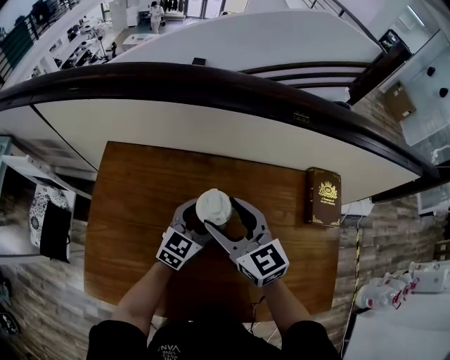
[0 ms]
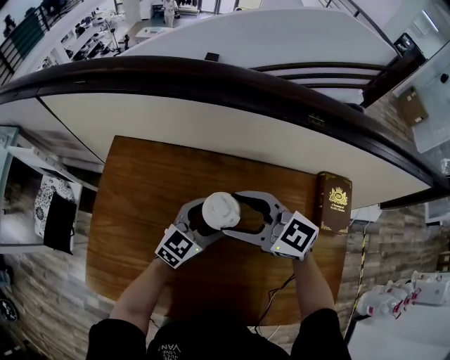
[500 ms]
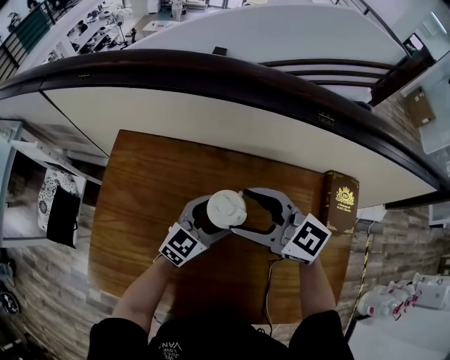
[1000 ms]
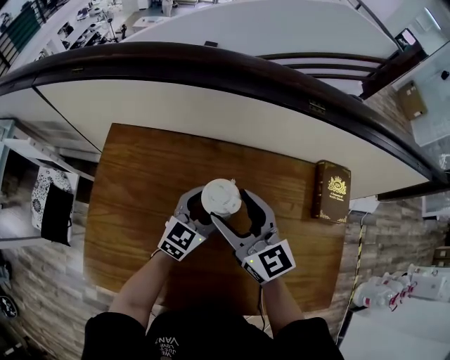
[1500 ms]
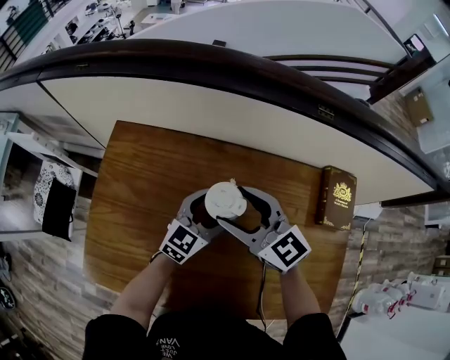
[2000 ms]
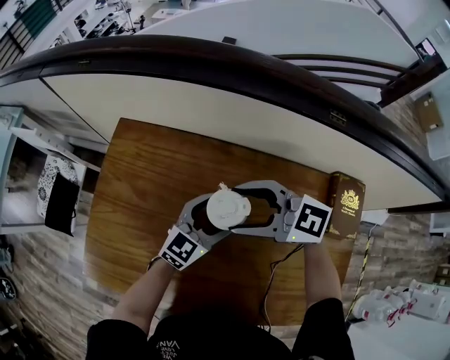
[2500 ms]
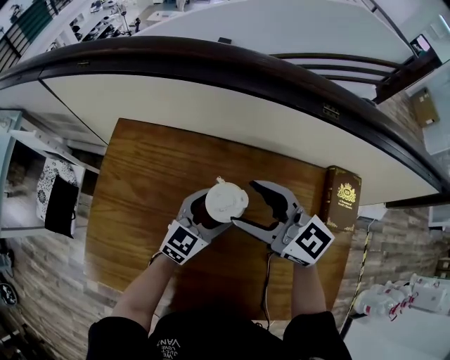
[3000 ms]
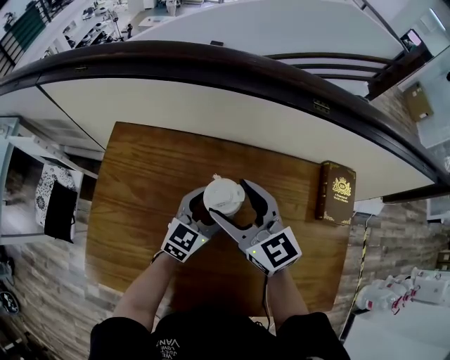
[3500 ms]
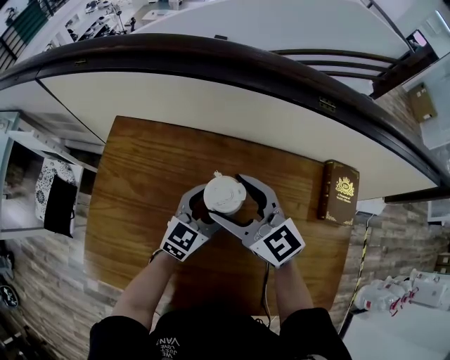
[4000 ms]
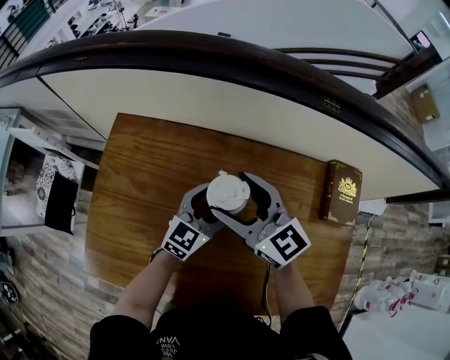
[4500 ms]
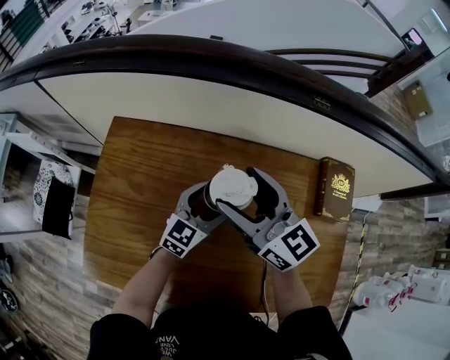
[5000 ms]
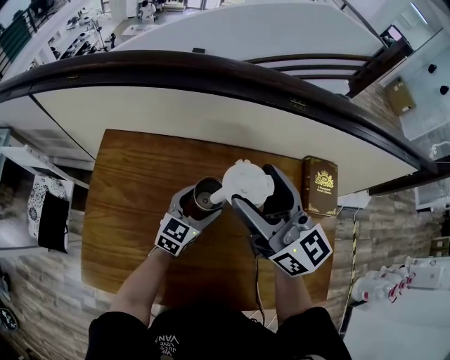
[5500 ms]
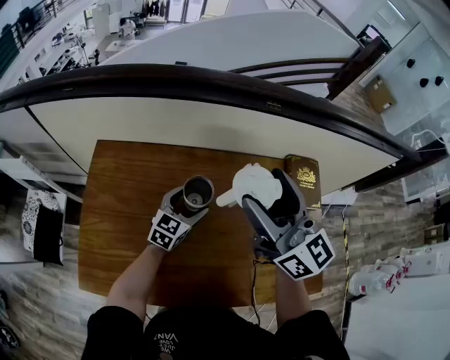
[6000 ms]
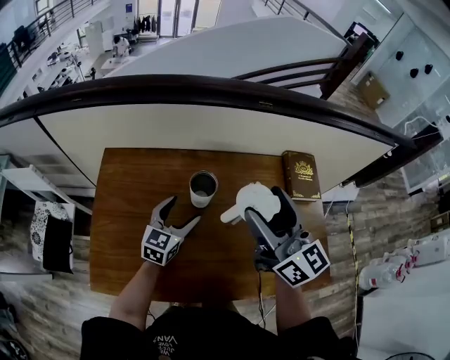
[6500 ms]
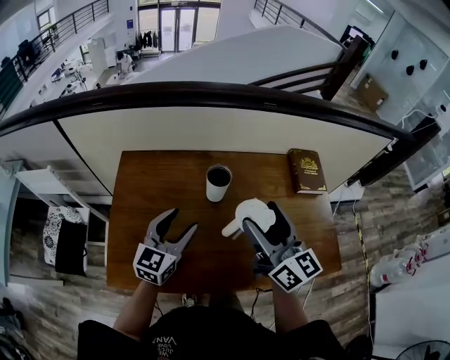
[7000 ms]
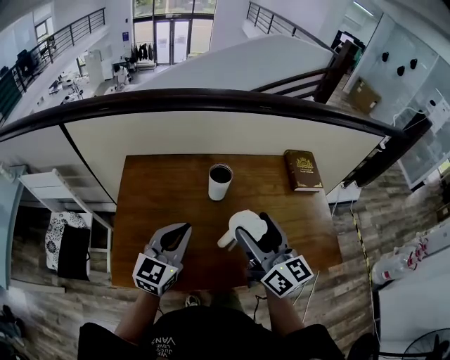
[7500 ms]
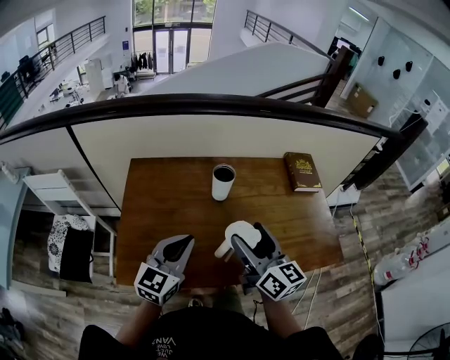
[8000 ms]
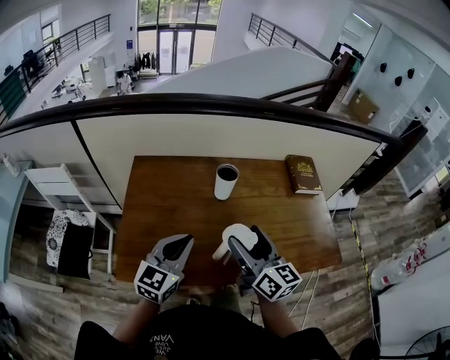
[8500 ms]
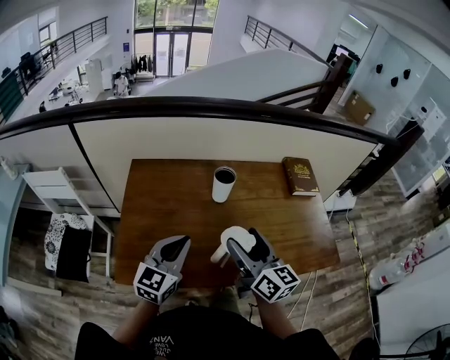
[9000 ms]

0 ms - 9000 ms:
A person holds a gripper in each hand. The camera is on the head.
4500 ms - 7000 ms: The left gripper heads backward, upward and to the left, covering approximately 20 cm. The right gripper shifts some 20 cm backward, upward and to the right, and turns by roughly 40 degrees.
7000 ms - 9000 ms: The right gripper shifts some 10 cm backward and downward; the left gripper travels backward by approximately 10 cm, and closes its fingers.

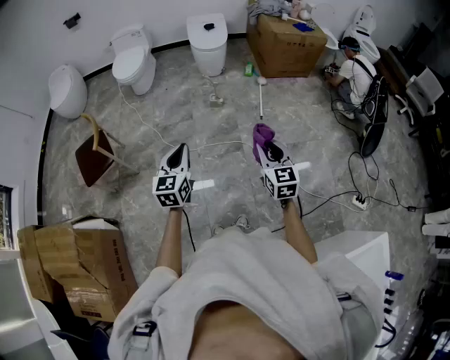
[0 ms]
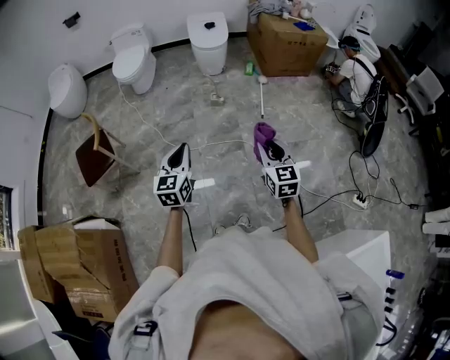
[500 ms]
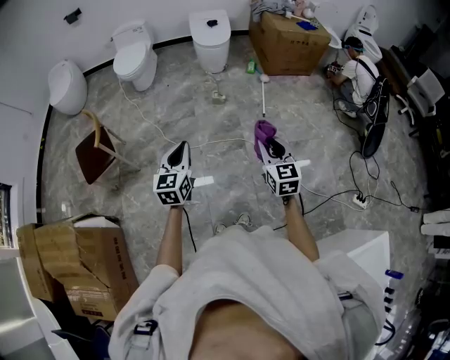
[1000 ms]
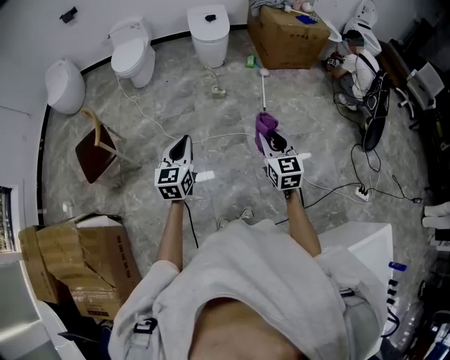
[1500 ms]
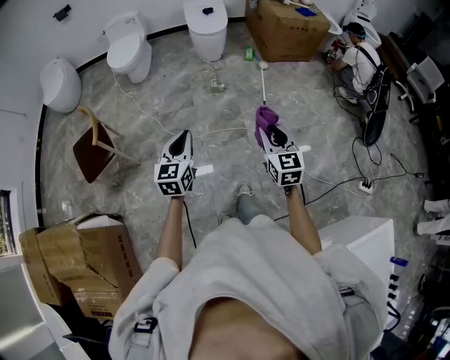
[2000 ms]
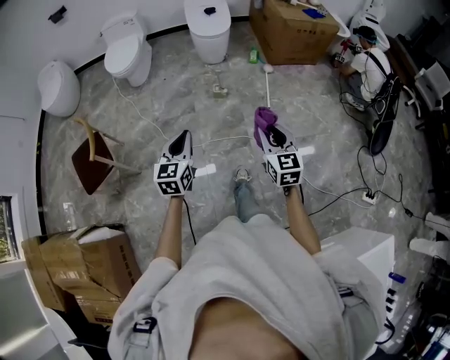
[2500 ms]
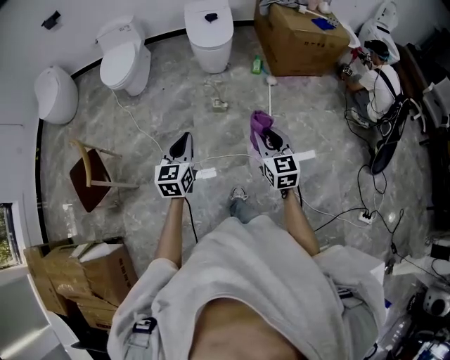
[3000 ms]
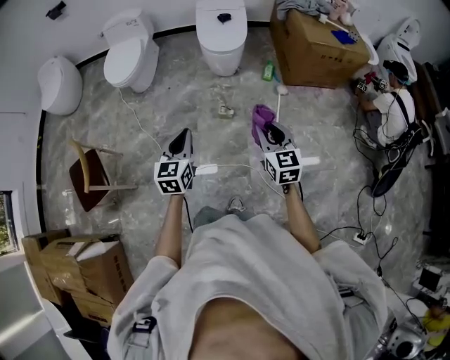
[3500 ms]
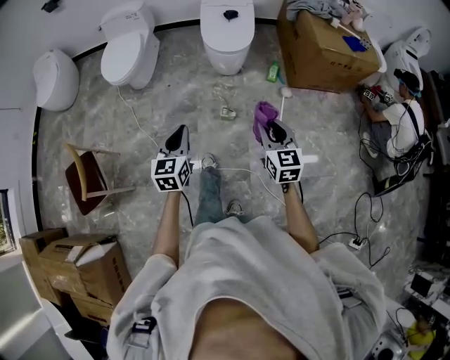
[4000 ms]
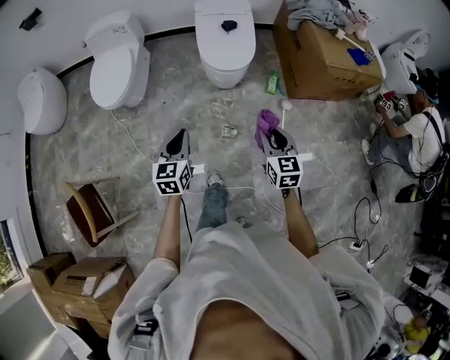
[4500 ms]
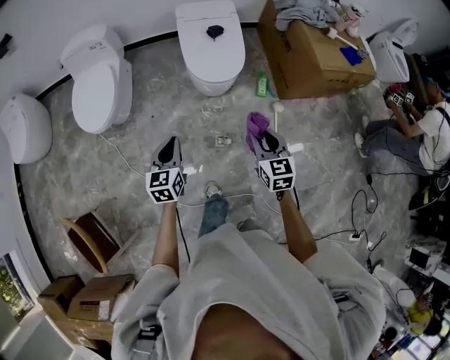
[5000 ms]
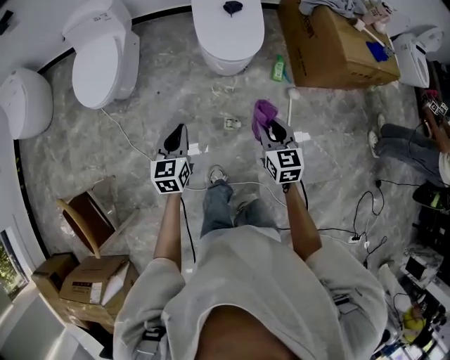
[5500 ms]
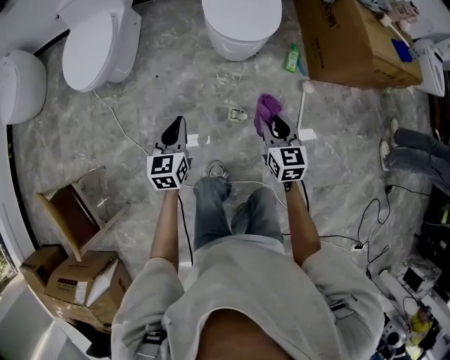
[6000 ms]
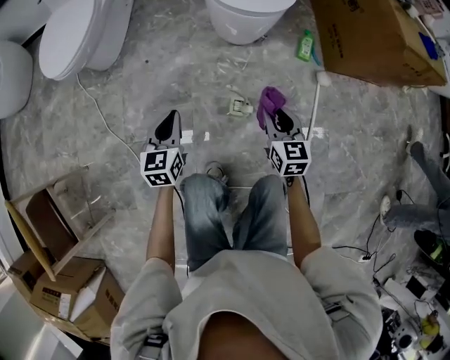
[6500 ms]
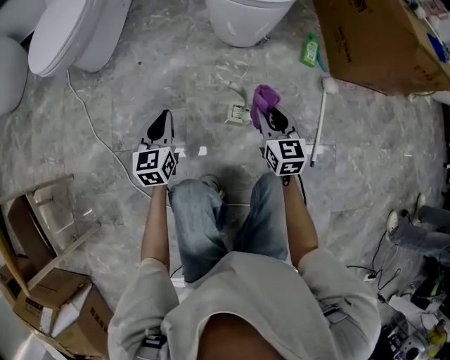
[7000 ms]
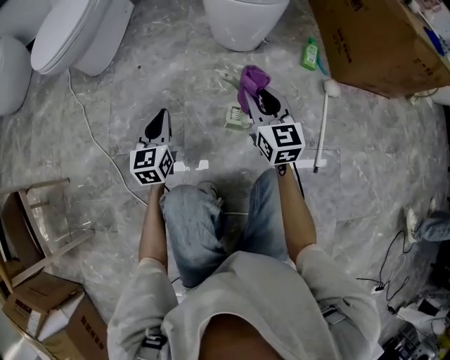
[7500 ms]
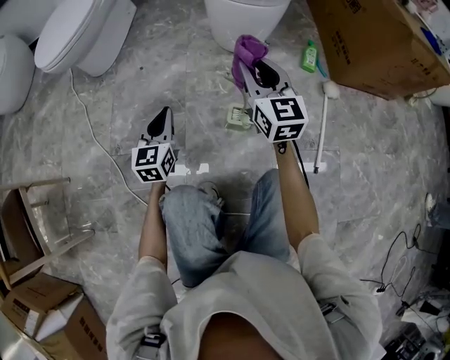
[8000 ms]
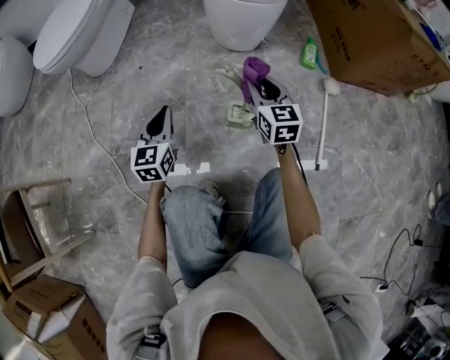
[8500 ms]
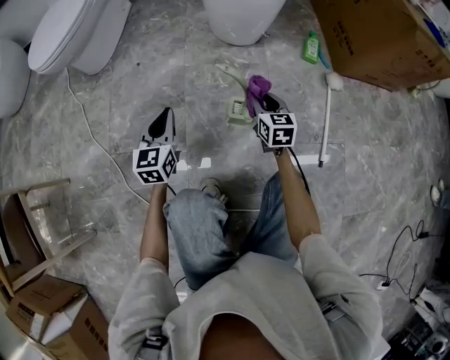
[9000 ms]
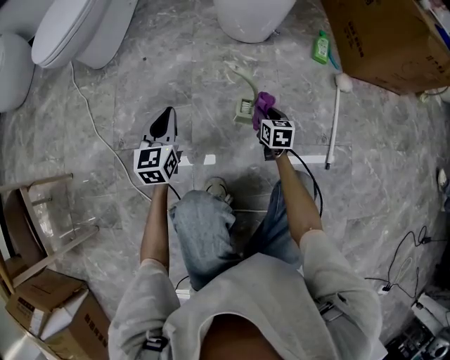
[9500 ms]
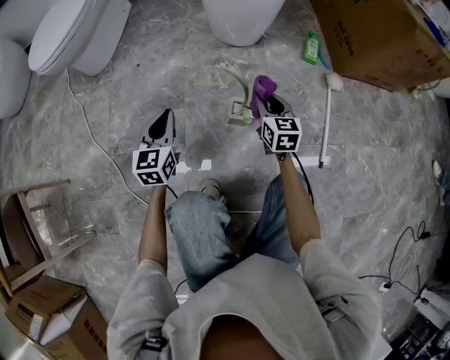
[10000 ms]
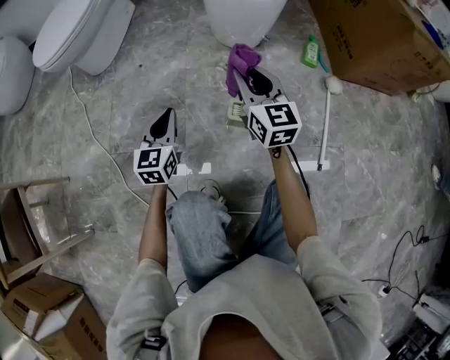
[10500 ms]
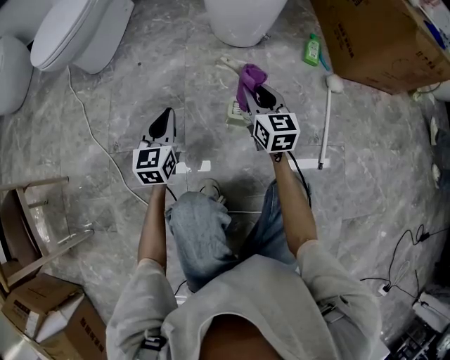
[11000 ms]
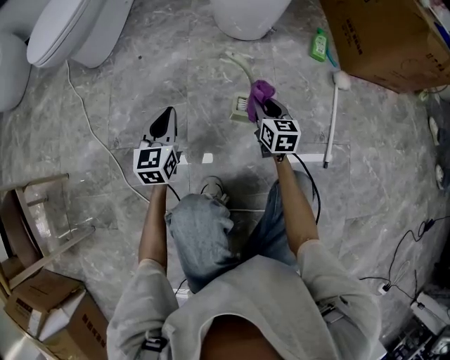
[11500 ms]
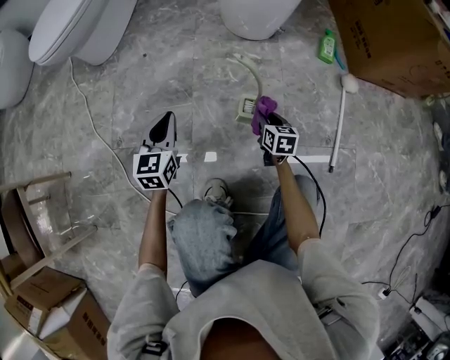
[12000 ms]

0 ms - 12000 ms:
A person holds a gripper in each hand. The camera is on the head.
0 ms - 2000 ms: The left gripper changes place by roughly 5 cm, while the right gripper shifts by some 5 cm.
2000 ms - 4000 ms: The pair of grippers is taken forward, some 50 cm.
4000 ms - 6000 ms: The right gripper moves downward and forward, approximately 35 cm; the left gripper is displaced forward and downward by roughly 35 cm.
6000 ms - 8000 ms: The right gripper shifts approximately 20 cm downward and forward, and swivels some 20 degrees. Meanwhile the left gripper is displaced downward by approximately 30 cm.
8000 ms - 10000 ms: The right gripper shifts roughly 20 cm downward, and turns by approximately 20 degrees.
10000 ms - 12000 ms: The right gripper is displaced downward by some 15 cm.

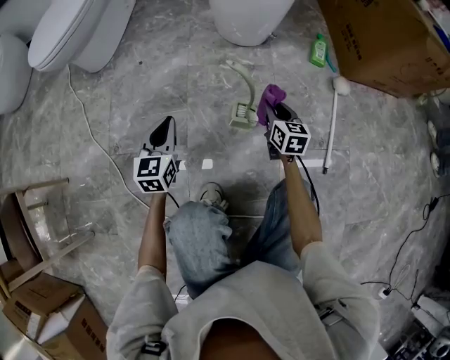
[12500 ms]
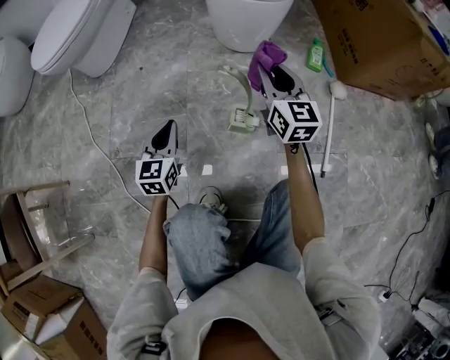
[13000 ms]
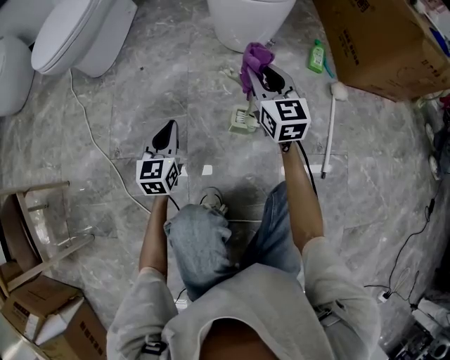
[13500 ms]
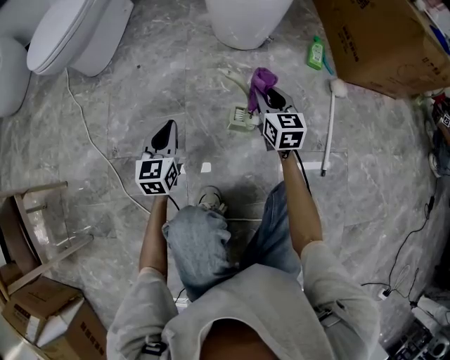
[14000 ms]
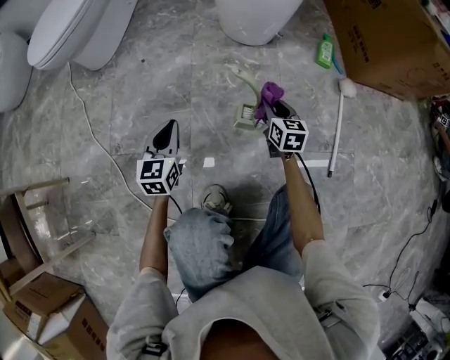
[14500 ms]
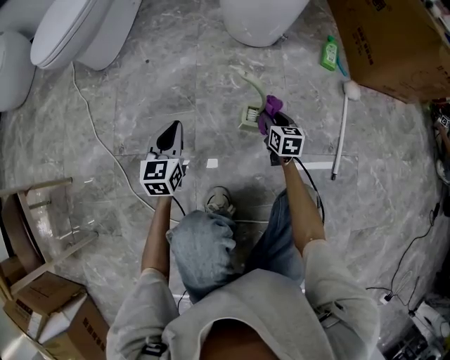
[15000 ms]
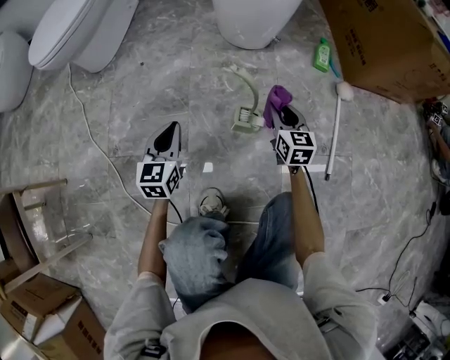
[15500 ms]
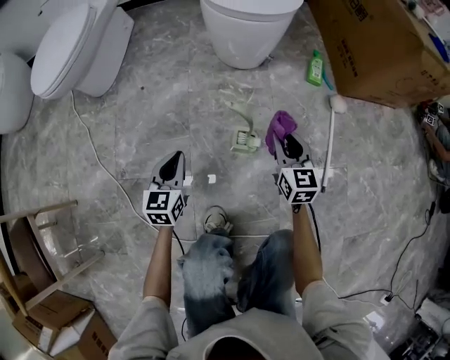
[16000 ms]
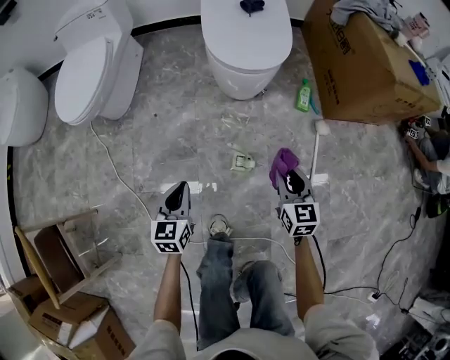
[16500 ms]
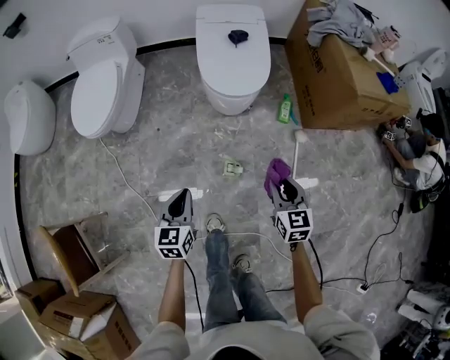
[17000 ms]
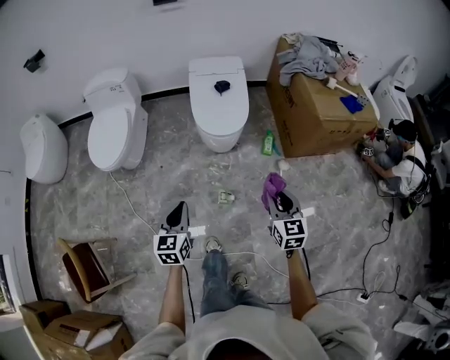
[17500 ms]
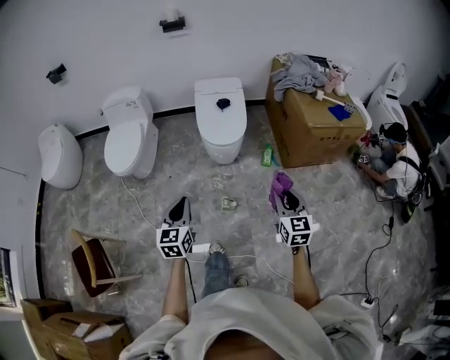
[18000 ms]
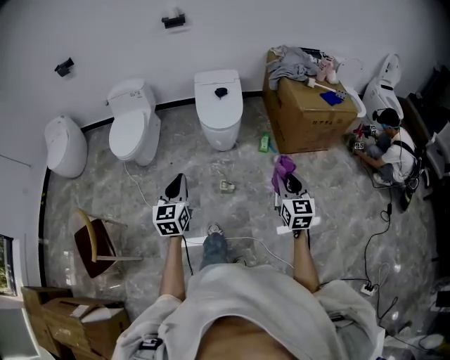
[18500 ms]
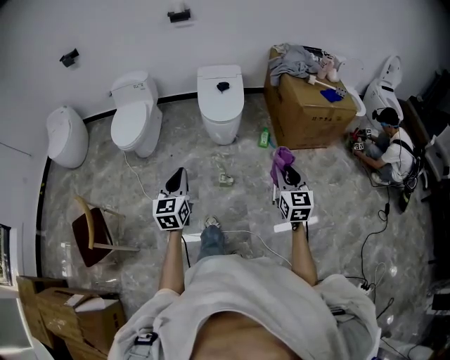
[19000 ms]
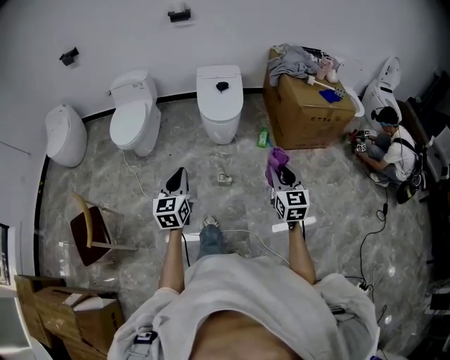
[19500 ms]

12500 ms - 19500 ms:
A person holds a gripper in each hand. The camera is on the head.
12500 ms - 14500 ms: The right gripper travels upward and back again, about 20 cm each way.
14500 ms - 16000 ms: The right gripper moves upward, about 15 cm.
16000 ms - 17500 ms: The grippers both shift upward by roughly 50 cm.
17500 ms - 19500 ms: The grippers both shift backward and upward by some 20 cm.
